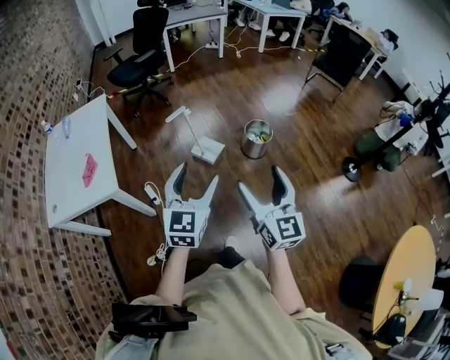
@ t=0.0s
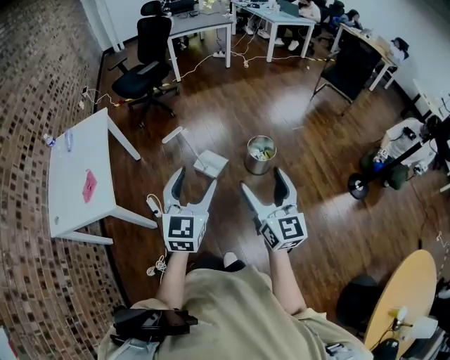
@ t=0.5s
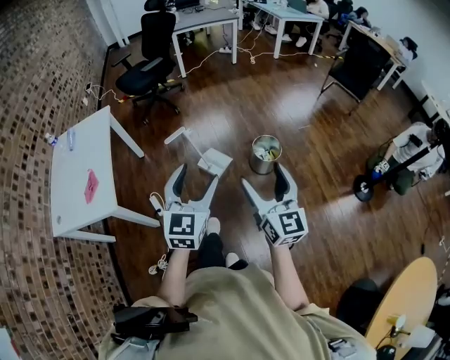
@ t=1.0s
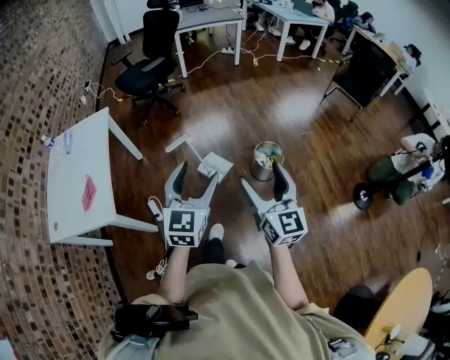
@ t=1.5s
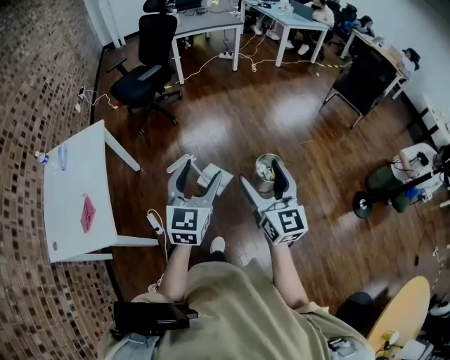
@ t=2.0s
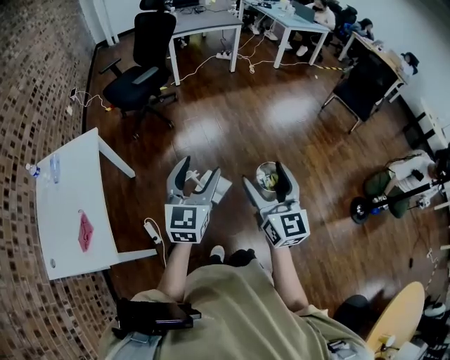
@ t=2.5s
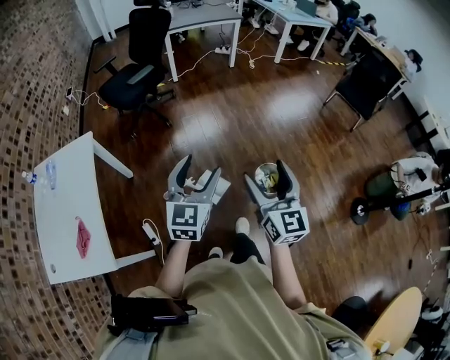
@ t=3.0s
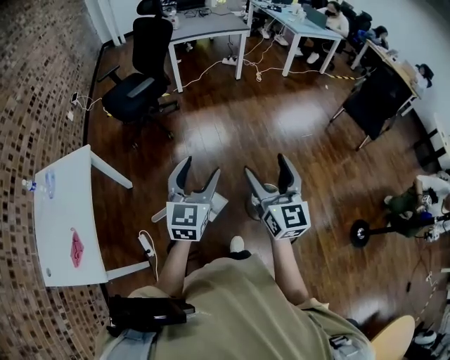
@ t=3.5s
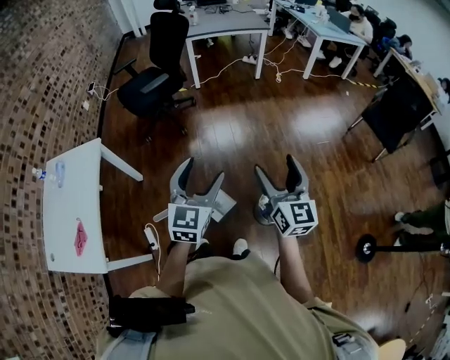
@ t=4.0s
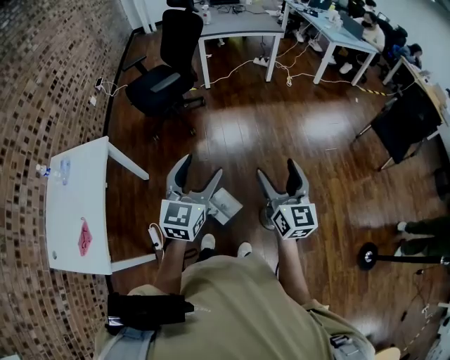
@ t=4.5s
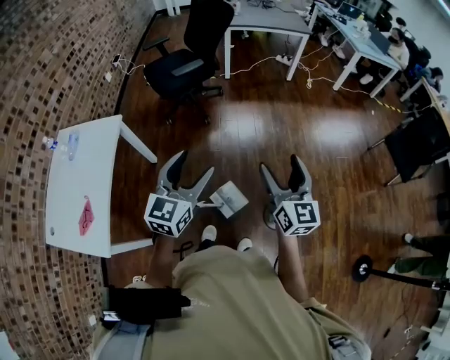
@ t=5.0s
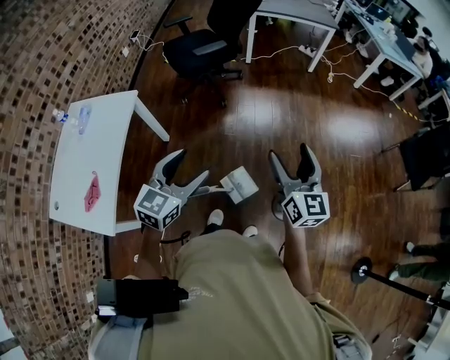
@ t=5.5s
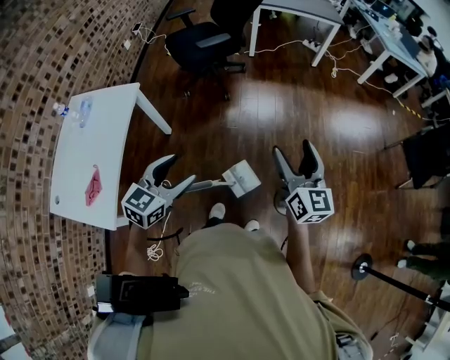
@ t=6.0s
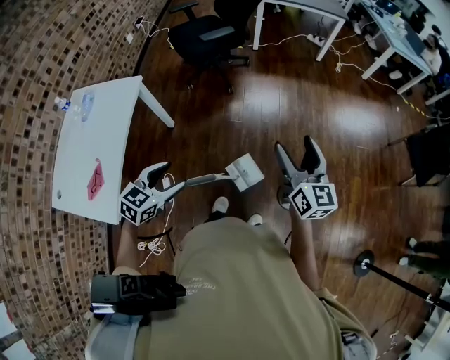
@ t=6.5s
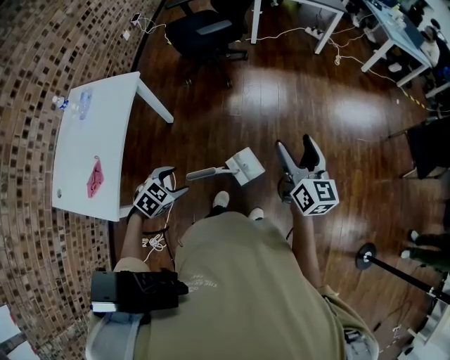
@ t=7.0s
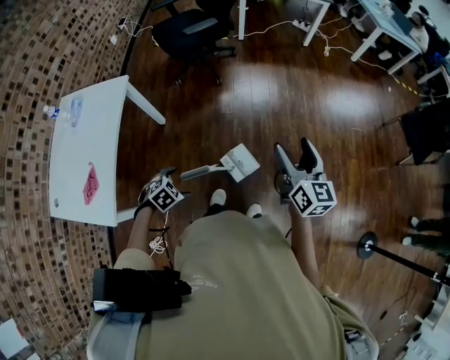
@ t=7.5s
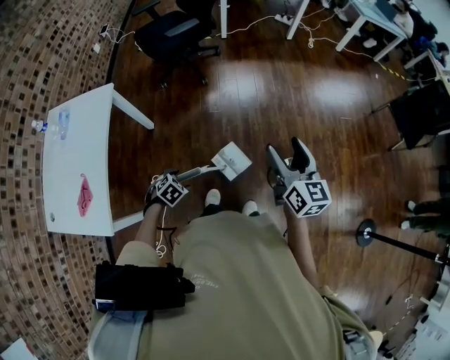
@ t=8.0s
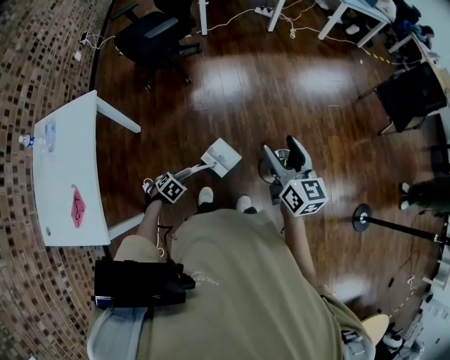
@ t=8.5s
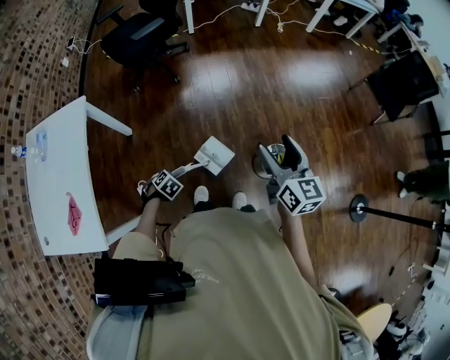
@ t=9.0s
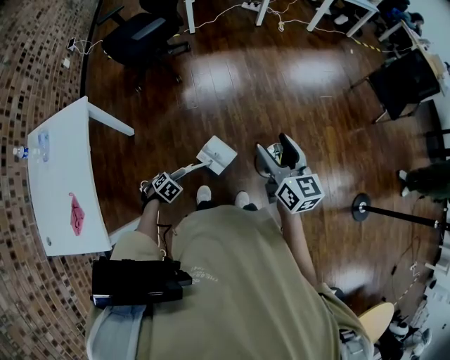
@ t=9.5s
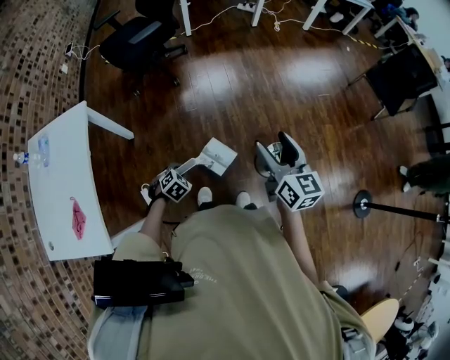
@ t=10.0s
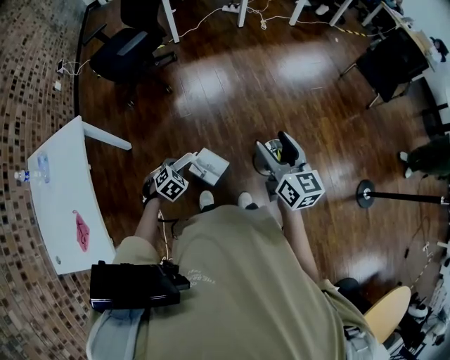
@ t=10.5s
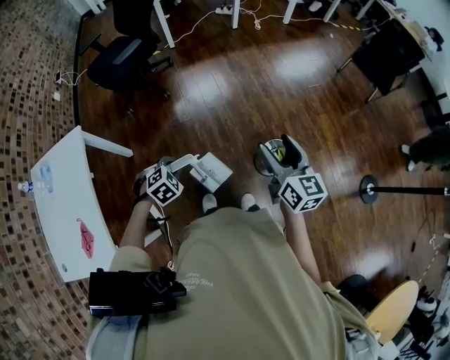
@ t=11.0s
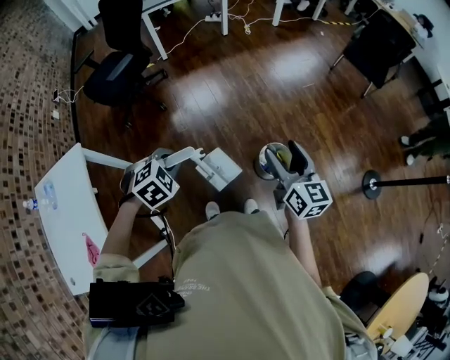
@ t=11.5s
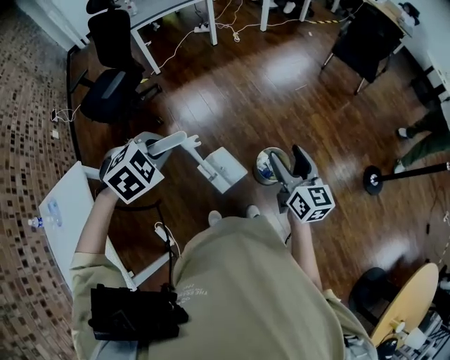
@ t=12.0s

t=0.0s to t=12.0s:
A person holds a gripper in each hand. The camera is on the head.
t=0.0s to t=2.0s: Both grippers travel together forward, about 30 cm.
t=2.0s to t=4.0s: Both grippers move forward, approximately 30 cm.
t=4.0s to t=6.0s: The right gripper goes approximately 15 cm to the left and forward; the left gripper shifts some 25 cm to the left.
t=6.0s to t=8.0s: The right gripper shifts about 5 cm downward; the left gripper travels downward by some 30 cm, and tilts its fingers roughly 50 degrees downward.
t=8.0s to t=10.0s: The left gripper moves some 10 cm, and closes up.
t=10.0s to t=12.0s: The right gripper moves to the right, roughly 15 cm, and swivels roughly 20 degrees, while the left gripper moves upward, roughly 35 cm, and rotates roughly 30 degrees.

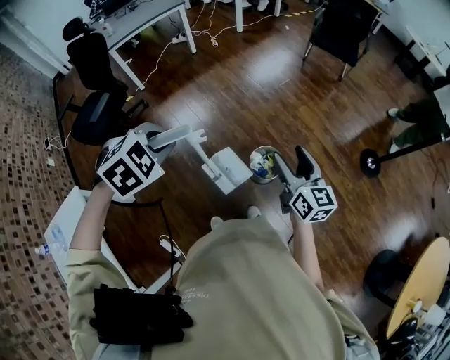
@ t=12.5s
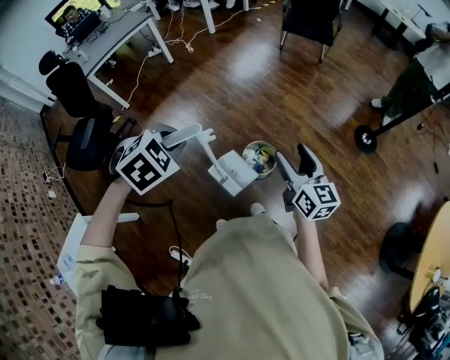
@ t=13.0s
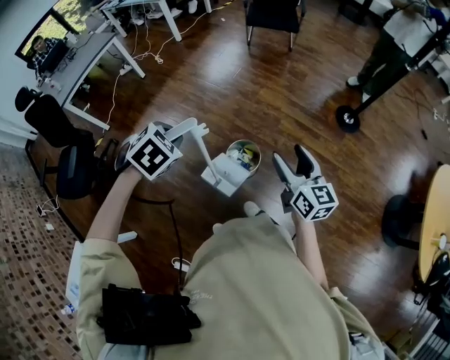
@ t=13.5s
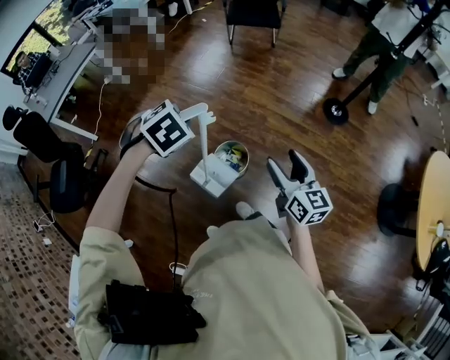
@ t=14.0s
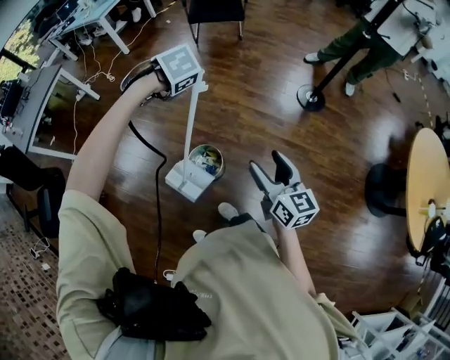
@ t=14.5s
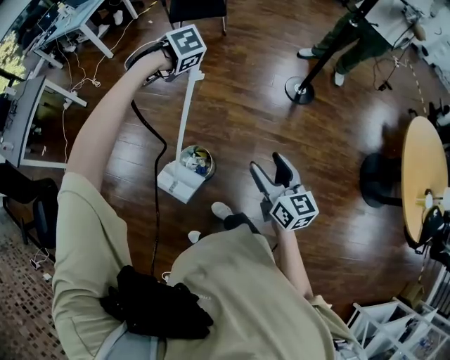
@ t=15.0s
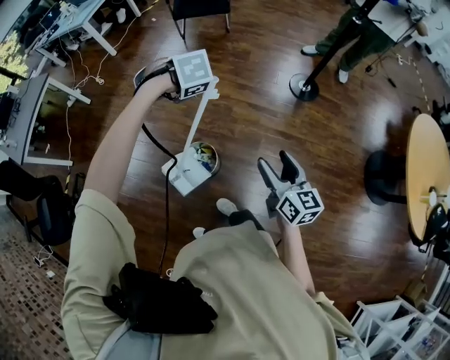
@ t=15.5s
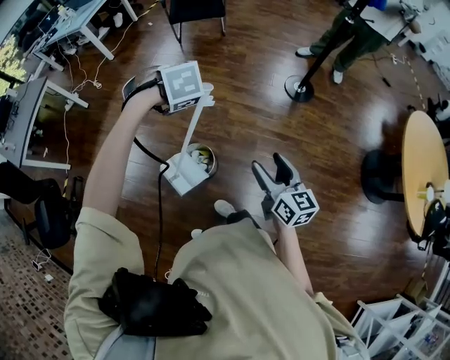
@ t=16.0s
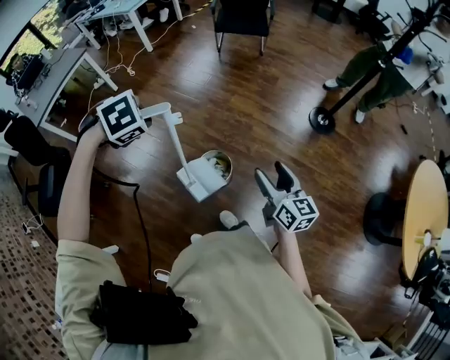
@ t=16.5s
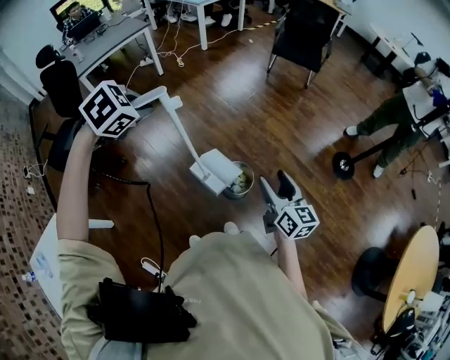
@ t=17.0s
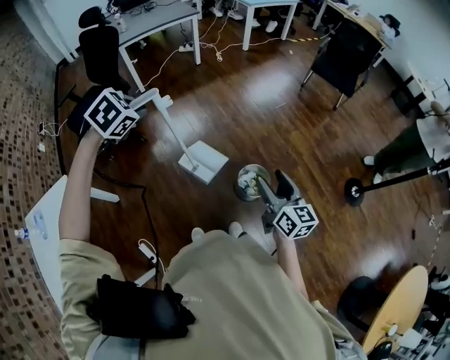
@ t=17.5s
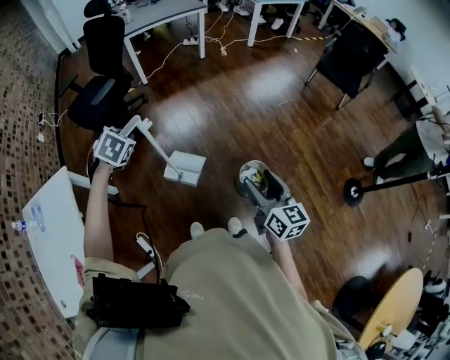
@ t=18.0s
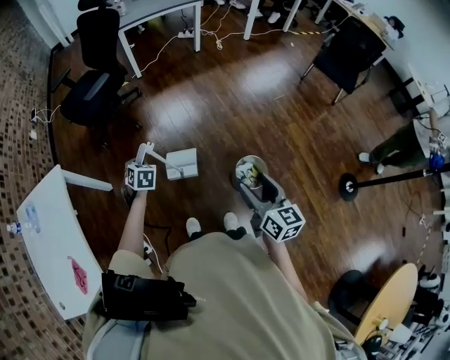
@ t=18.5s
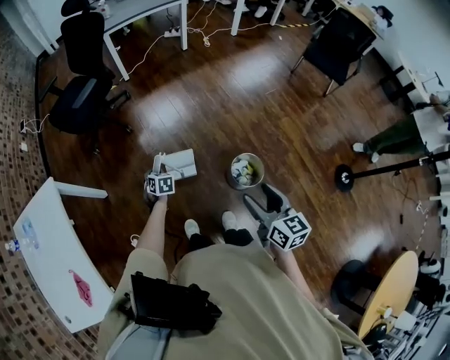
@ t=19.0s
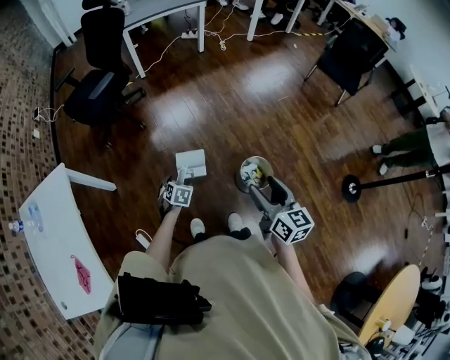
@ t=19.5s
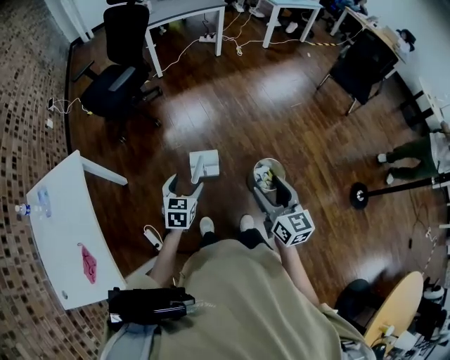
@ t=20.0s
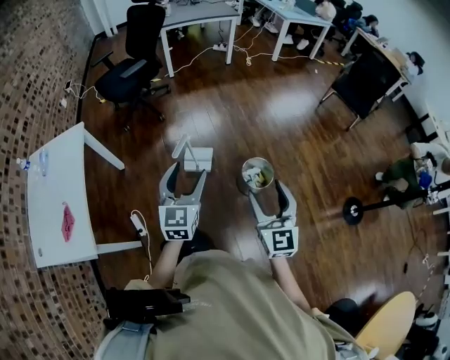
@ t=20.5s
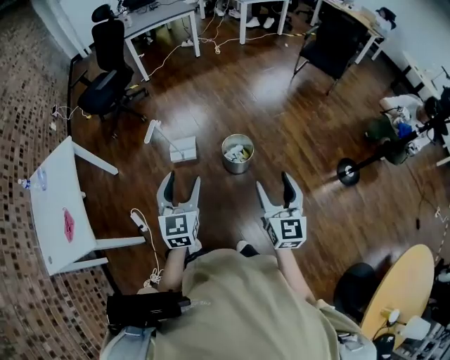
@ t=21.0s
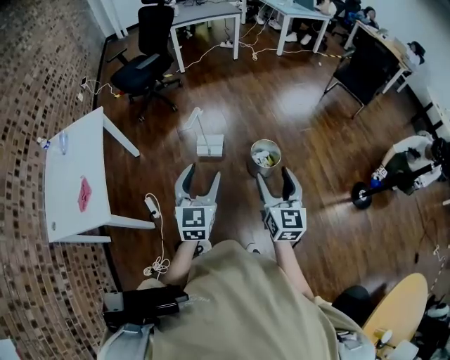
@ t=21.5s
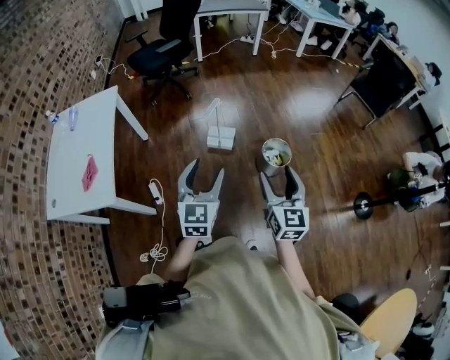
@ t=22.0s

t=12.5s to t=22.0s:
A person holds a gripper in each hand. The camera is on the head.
t=12.5s to t=14.5s: The right gripper moves approximately 25 cm, and turns by about 20 degrees, while the left gripper moves about 50 cm, and changes its angle by some 30 degrees.
t=14.5s to t=16.5s: The left gripper shifts by roughly 20 cm.
t=16.5s to t=18.0s: The left gripper changes place by approximately 50 cm, and rolls counterclockwise, seen from behind, by about 60 degrees. The right gripper ends up some 30 cm from where it was, and swivels approximately 40 degrees.
t=18.0s to t=20.0s: The left gripper heads backward and downward, covering about 20 cm, swivels some 40 degrees, and opens, while the right gripper goes some 10 cm to the left.
t=20.0s to t=22.0s: The right gripper heads backward, covering some 25 cm; the left gripper is displaced backward and upward by about 35 cm, and swivels roughly 30 degrees.

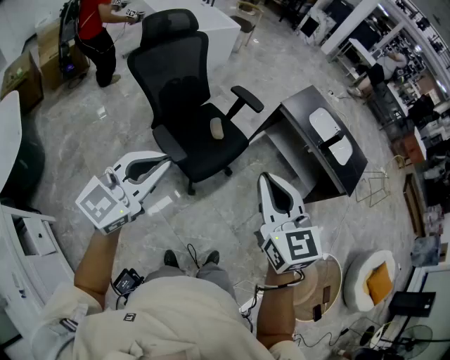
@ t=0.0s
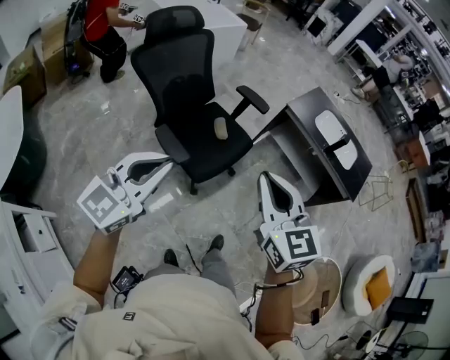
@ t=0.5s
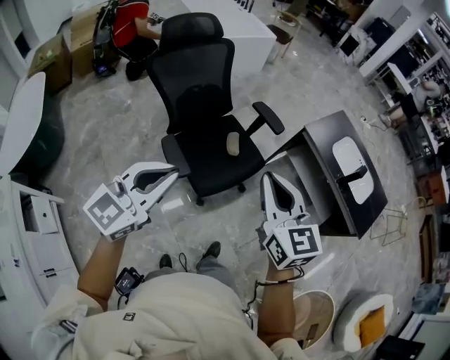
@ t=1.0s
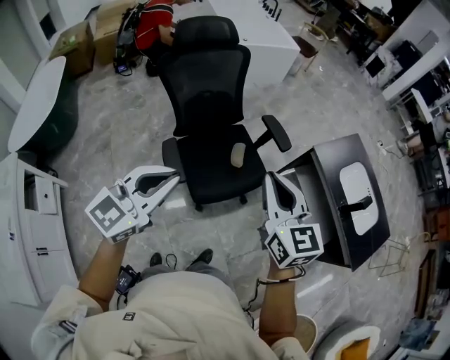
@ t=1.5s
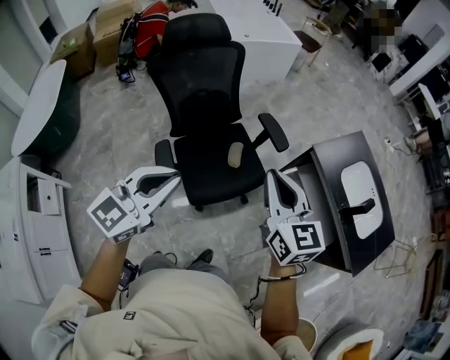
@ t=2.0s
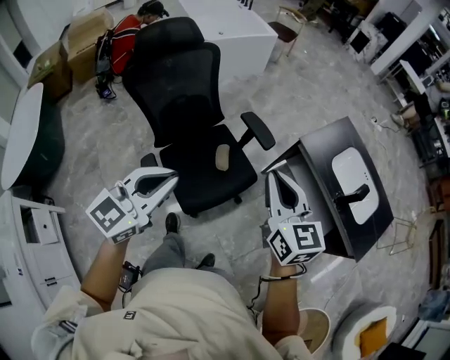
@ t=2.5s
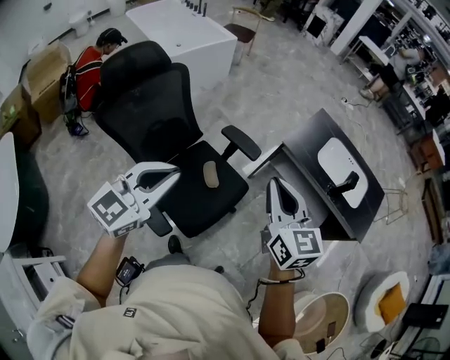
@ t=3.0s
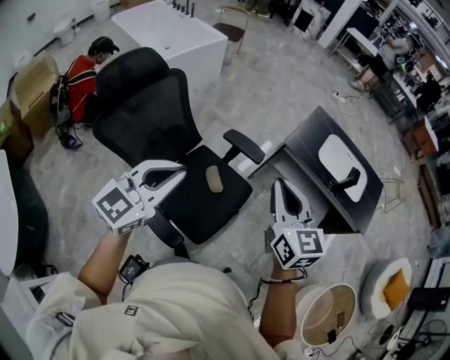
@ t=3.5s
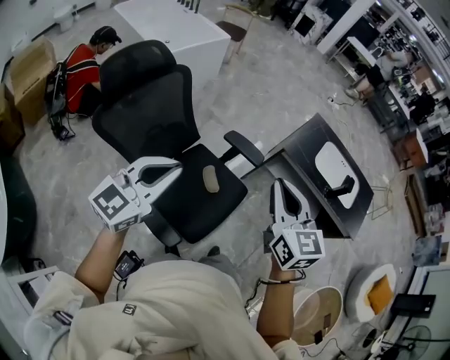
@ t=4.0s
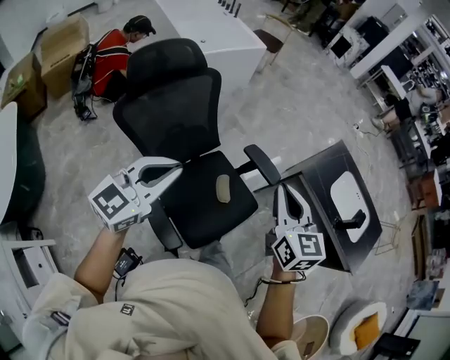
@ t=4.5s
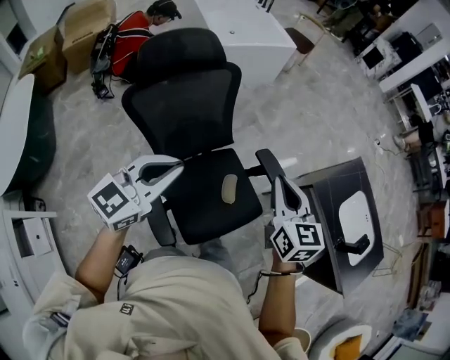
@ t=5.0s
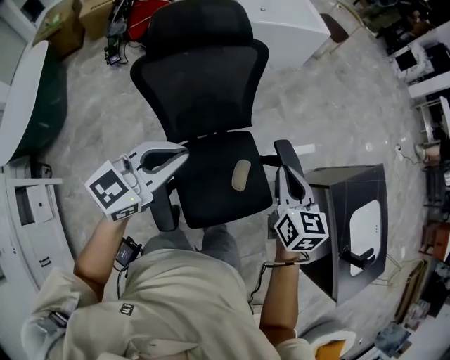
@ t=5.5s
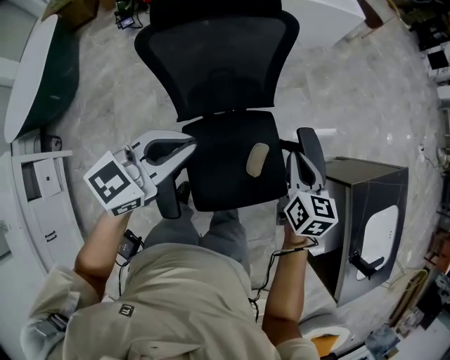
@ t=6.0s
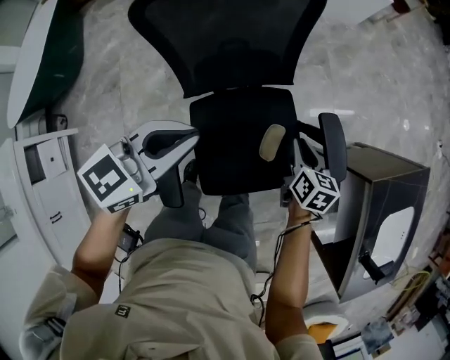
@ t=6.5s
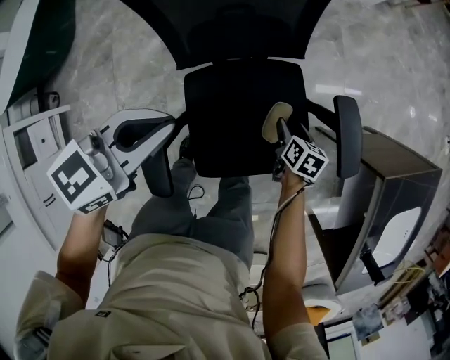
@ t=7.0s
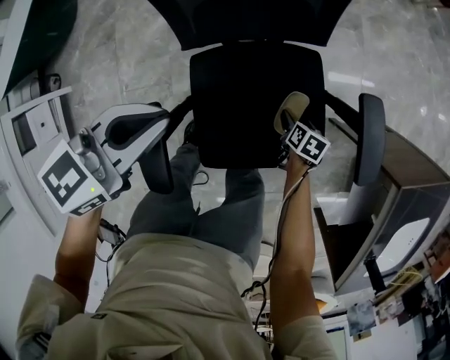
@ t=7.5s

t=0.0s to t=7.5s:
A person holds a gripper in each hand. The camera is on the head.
t=0.0s to t=2.0s: The left gripper heads forward and to the right, covering roughly 25 cm, and turns by approximately 20 degrees; the right gripper goes about 30 cm forward, and turns by approximately 20 degrees.
t=2.0s to t=4.0s: The left gripper shifts by roughly 25 cm, and changes its angle by roughly 30 degrees. Meanwhile the right gripper changes place by roughly 15 cm, and turns by approximately 30 degrees.
t=4.0s to t=5.5s: The right gripper shifts by roughly 25 cm, and changes its angle by roughly 30 degrees. The left gripper moves about 15 cm, and rotates some 30 degrees.
t=5.5s to t=7.5s: The right gripper shifts approximately 60 cm downward, points its fingers approximately 40 degrees further downward, and opens its fingers. Meanwhile the left gripper travels downward by some 25 cm, and turns by about 30 degrees.
